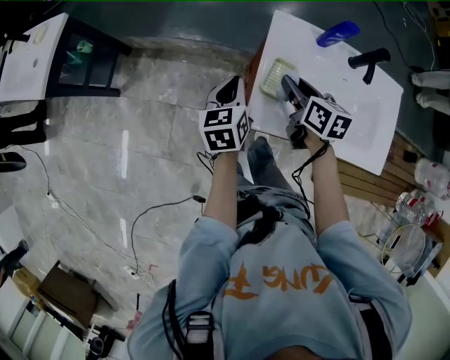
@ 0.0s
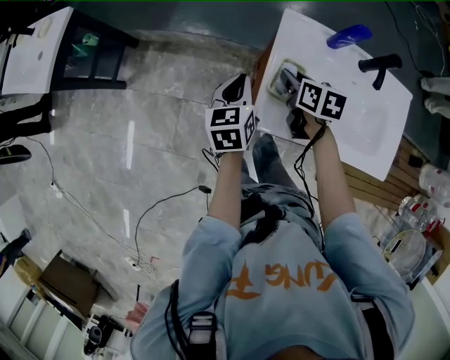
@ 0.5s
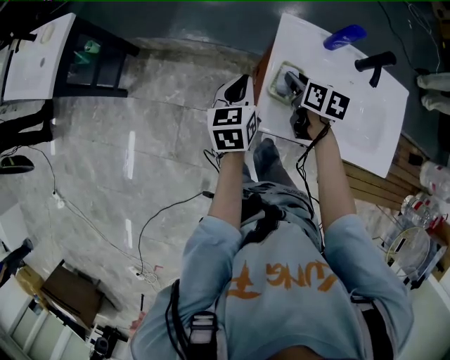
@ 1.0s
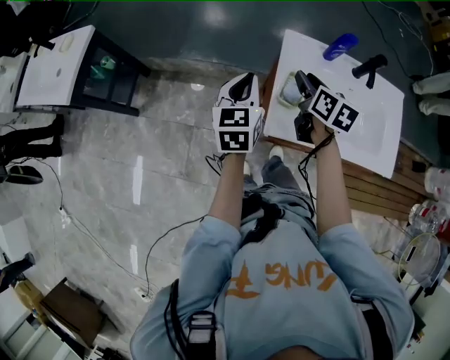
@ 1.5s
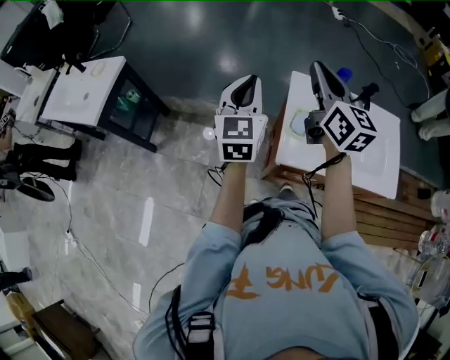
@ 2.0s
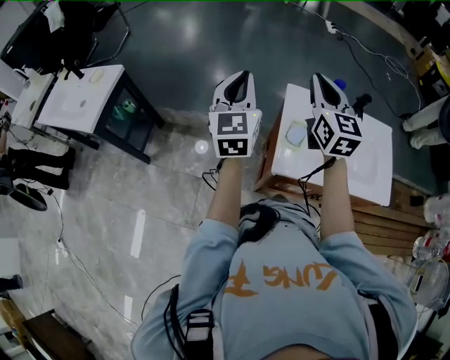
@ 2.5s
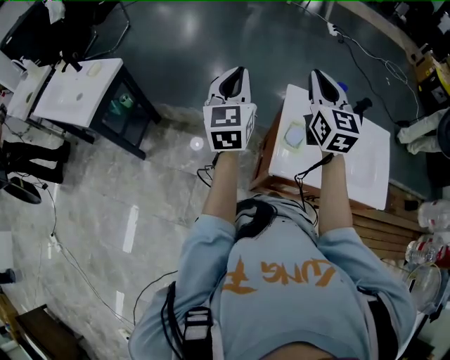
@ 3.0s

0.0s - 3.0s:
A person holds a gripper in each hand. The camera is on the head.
0.0s - 1.5s: The left gripper travels upward by about 10 cm. Meanwhile the right gripper heads upward, covering about 5 cm.
1.5s - 3.0s: The left gripper shifts about 20 cm upward and to the left, and turns by roughly 20 degrees. The right gripper heads upward, covering roughly 20 cm, changes its angle by roughly 50 degrees, and closes up.

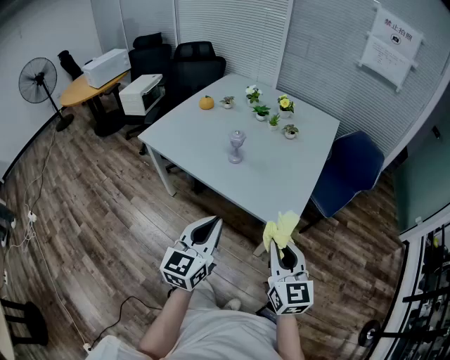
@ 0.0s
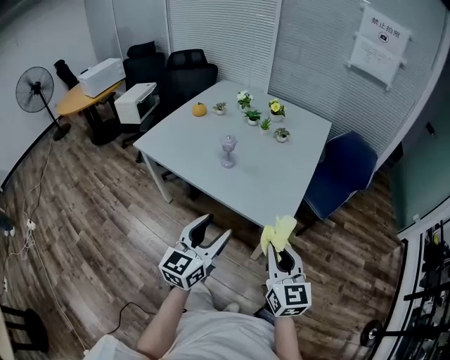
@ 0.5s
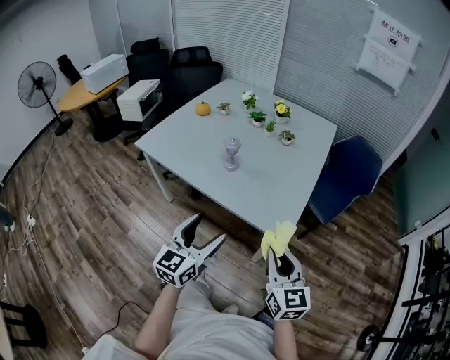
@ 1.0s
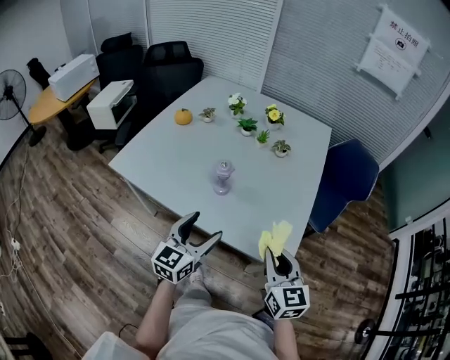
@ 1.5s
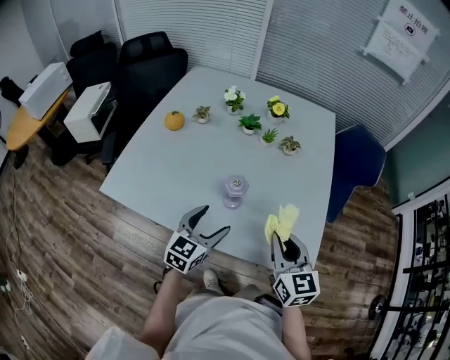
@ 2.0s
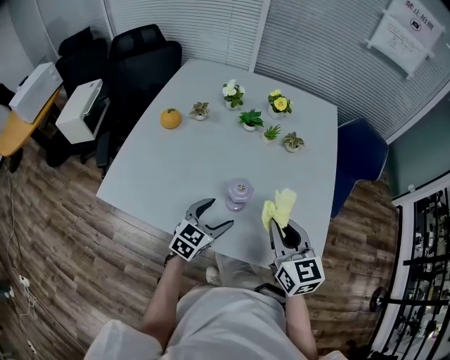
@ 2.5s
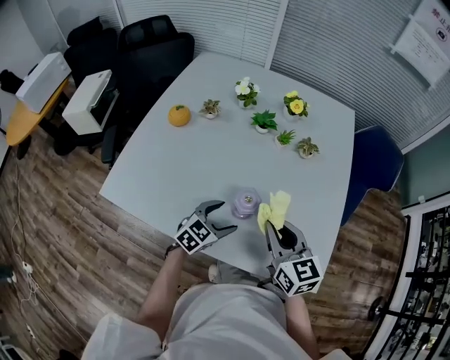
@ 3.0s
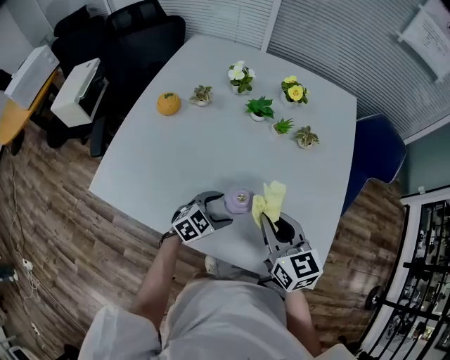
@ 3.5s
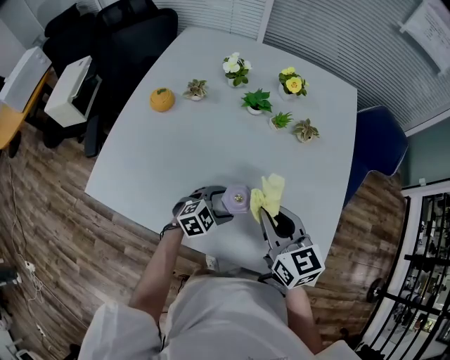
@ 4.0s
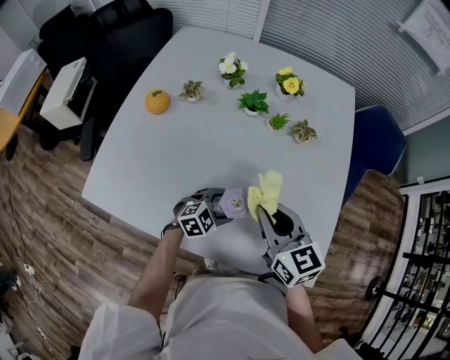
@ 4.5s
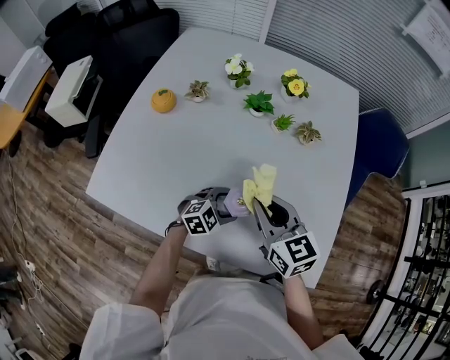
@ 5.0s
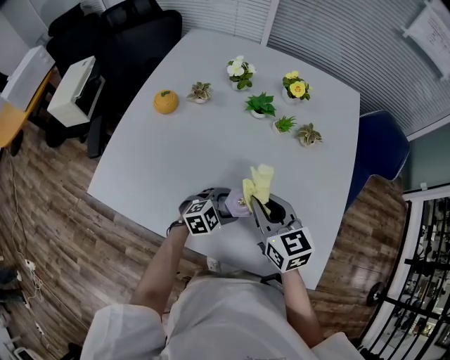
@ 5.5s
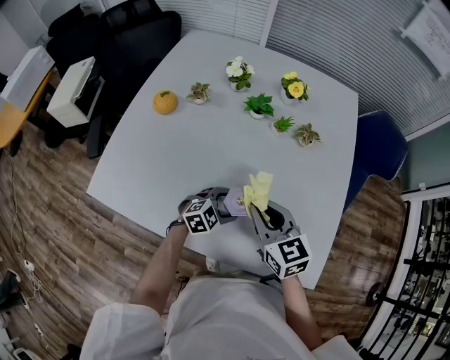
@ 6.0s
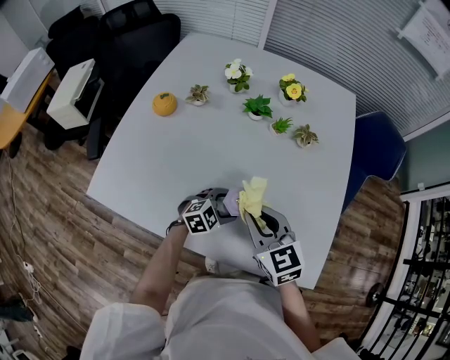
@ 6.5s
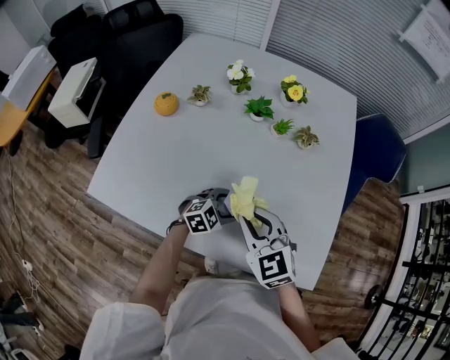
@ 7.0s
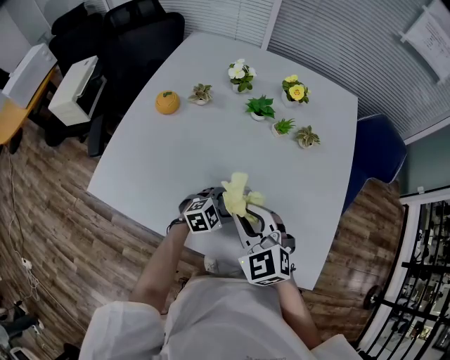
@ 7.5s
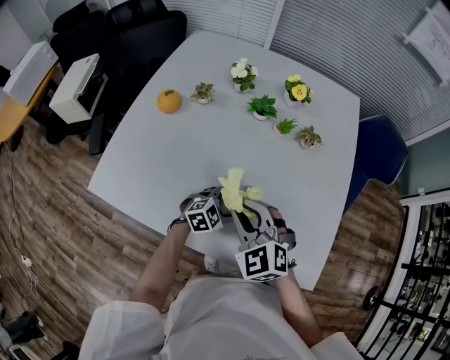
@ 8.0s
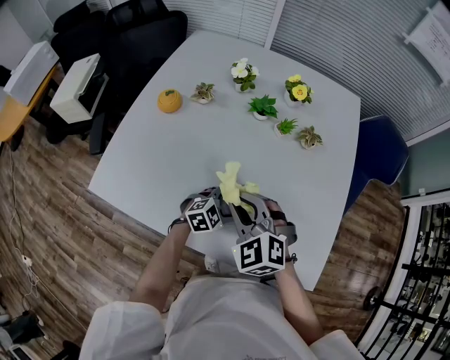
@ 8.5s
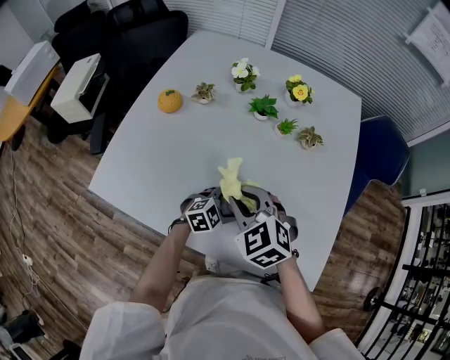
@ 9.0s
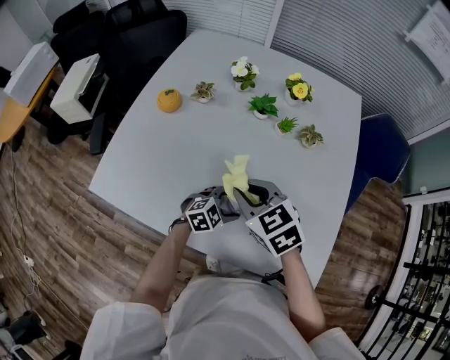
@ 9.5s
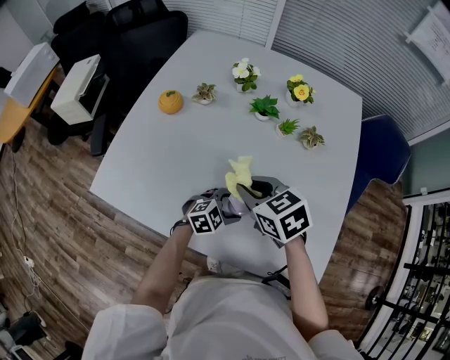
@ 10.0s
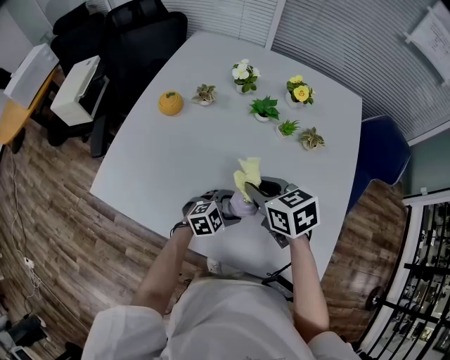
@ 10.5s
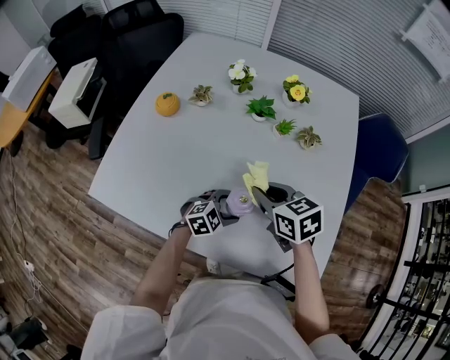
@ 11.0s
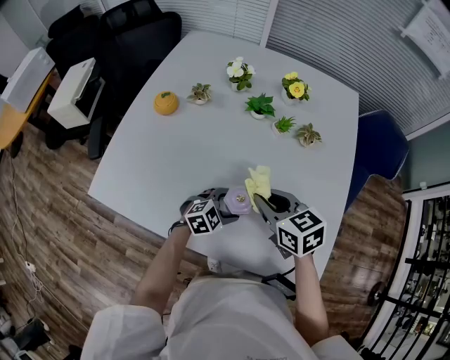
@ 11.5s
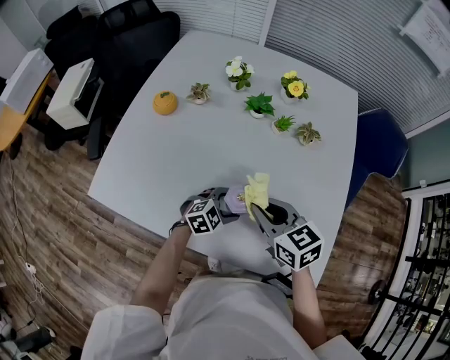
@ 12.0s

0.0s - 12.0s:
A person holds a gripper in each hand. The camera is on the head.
0.0s - 2.0s: The left gripper is displaced forward by roughly 35 cm, swivels approximately 30 degrees, and opens. Meanwhile the right gripper travels forward and to the left by roughly 35 cm.
2.0s - 4.0s: The left gripper goes roughly 20 cm downward and forward, and rotates roughly 40 degrees, while the right gripper shifts approximately 15 cm forward and to the left.
4.0s - 6.0s: The grippers make only small movements.
6.0s - 8.0s: The right gripper travels to the left by approximately 5 cm, and changes its angle by some 40 degrees.
8.0s - 10.0s: The right gripper travels forward by about 5 cm, and swivels approximately 40 degrees.
10.0s - 12.0s: The right gripper heads to the right, covering approximately 5 cm.

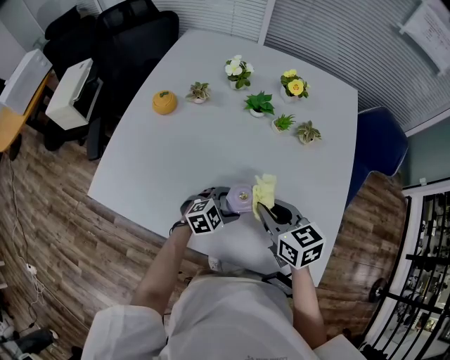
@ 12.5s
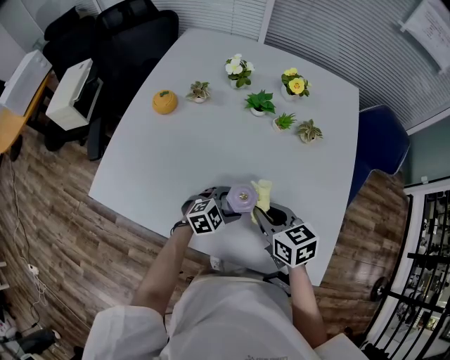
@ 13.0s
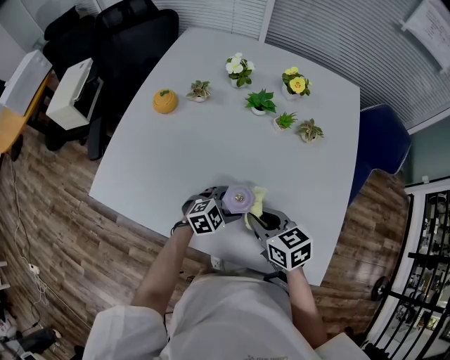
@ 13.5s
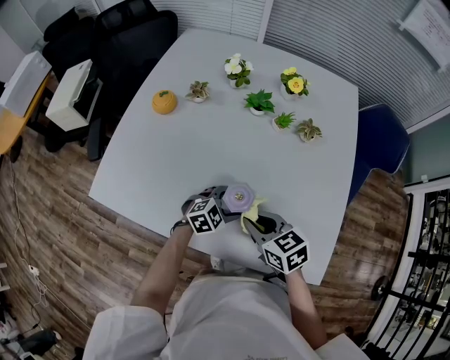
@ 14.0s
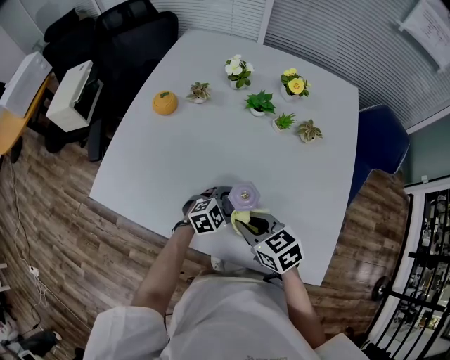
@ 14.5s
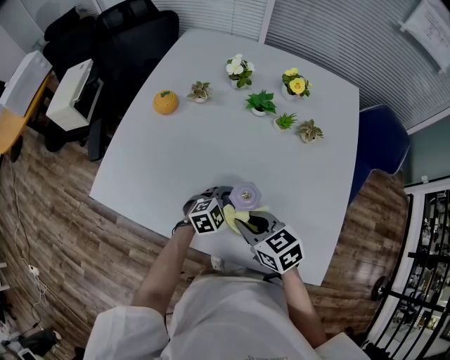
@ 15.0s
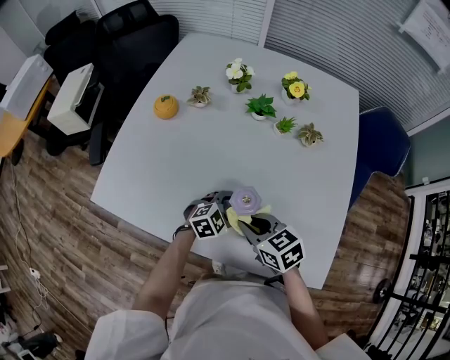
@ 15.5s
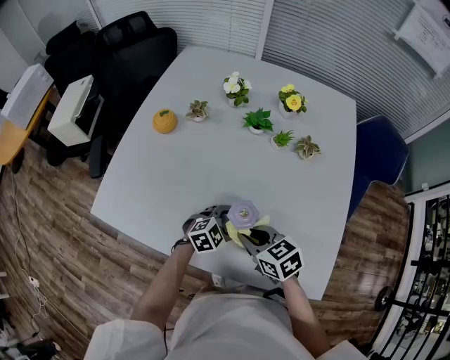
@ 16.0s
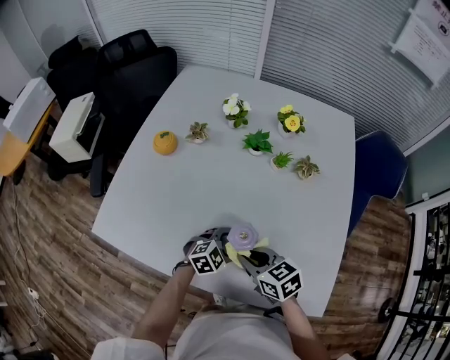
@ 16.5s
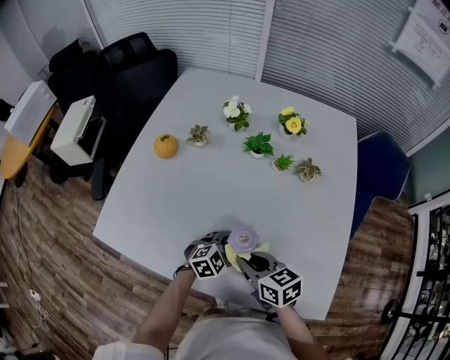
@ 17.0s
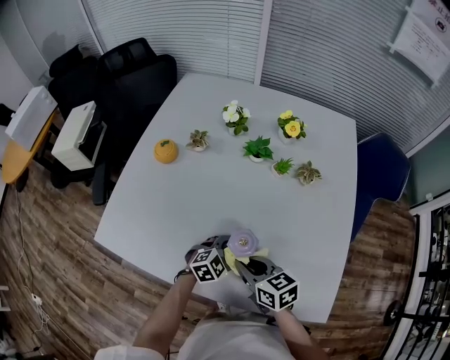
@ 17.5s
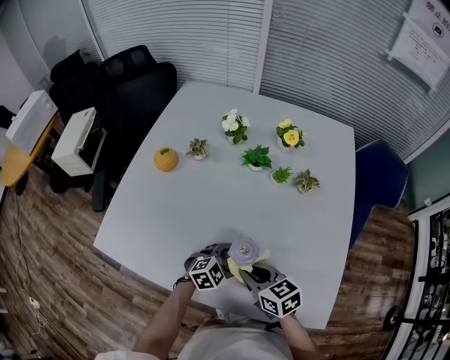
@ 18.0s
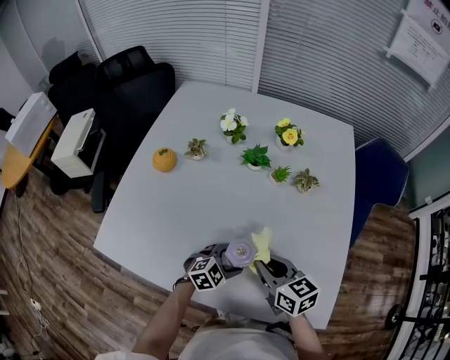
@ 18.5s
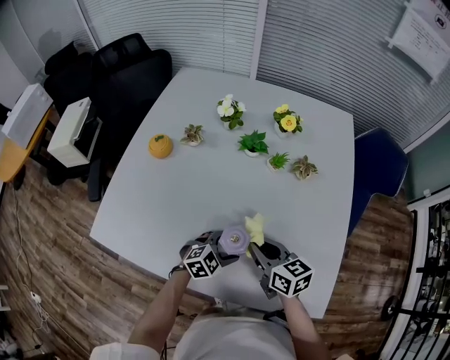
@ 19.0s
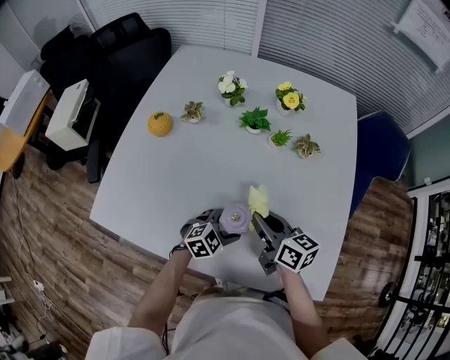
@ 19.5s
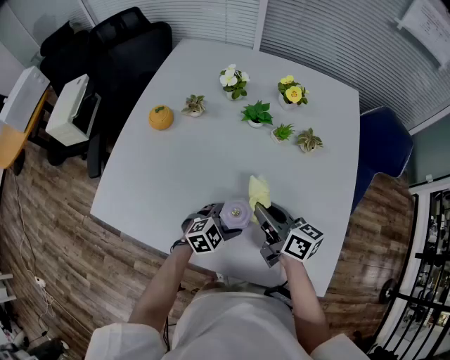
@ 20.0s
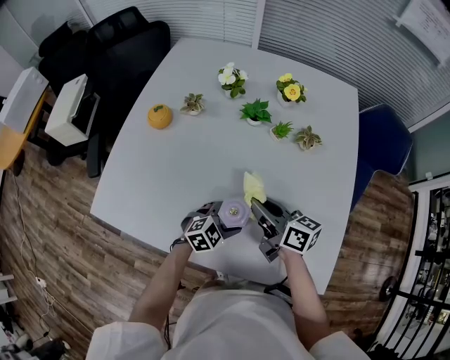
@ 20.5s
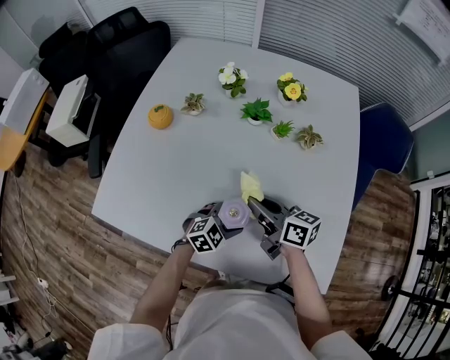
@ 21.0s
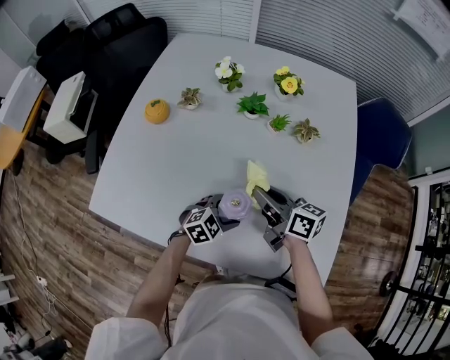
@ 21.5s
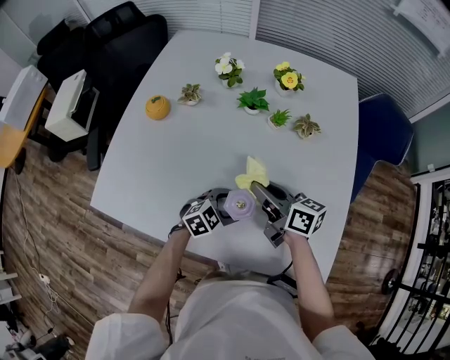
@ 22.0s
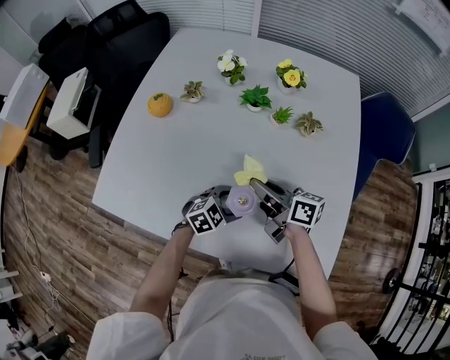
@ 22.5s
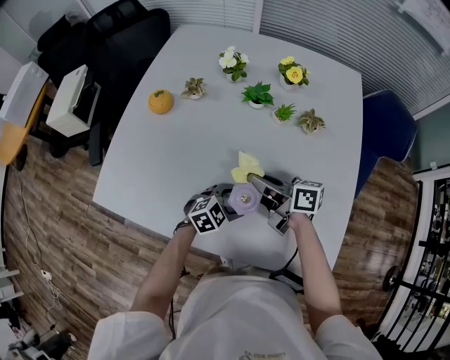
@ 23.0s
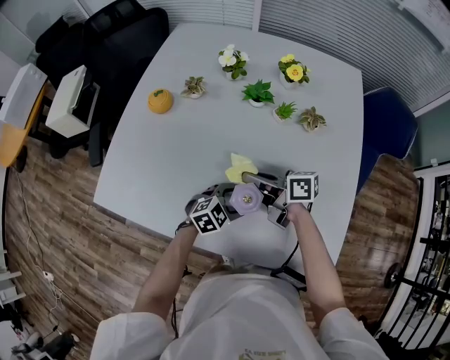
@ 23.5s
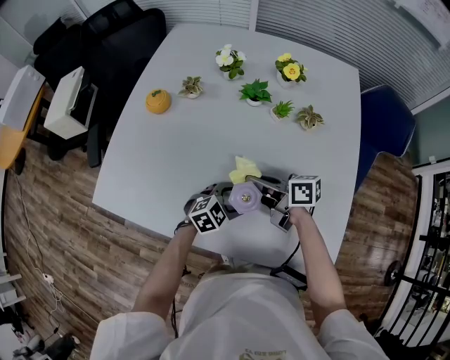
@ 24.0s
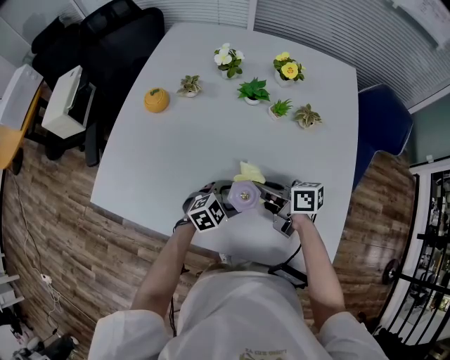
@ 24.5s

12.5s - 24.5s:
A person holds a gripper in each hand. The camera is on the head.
12.5s - 14.5s: The right gripper is displaced backward and to the left by approximately 10 cm.
14.5s - 16.5s: The grippers move only a little.
16.5s - 18.5s: The right gripper moves roughly 5 cm.
18.5s - 20.5s: The right gripper changes place by roughly 5 cm, and swivels some 30 degrees.
20.5s - 22.5s: The grippers move only a little.
22.5s - 24.5s: There are only small adjustments of the grippers.
